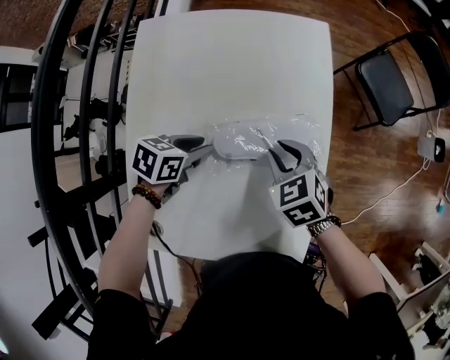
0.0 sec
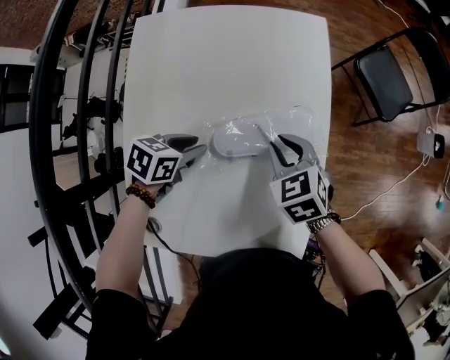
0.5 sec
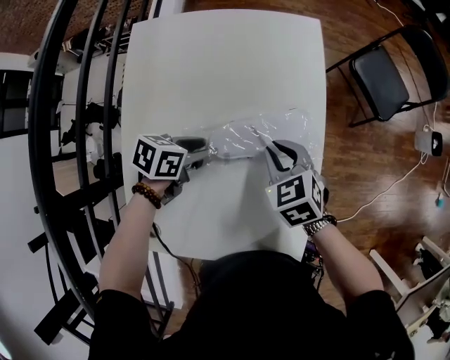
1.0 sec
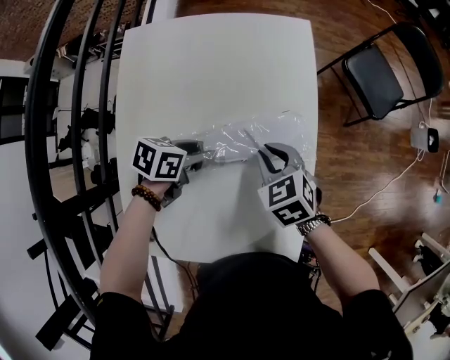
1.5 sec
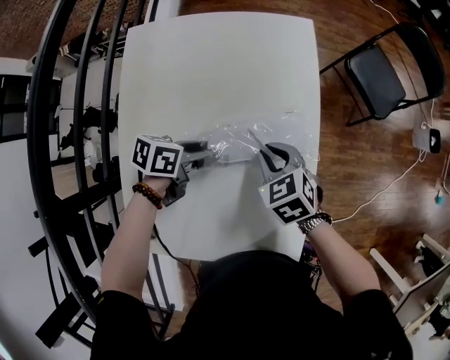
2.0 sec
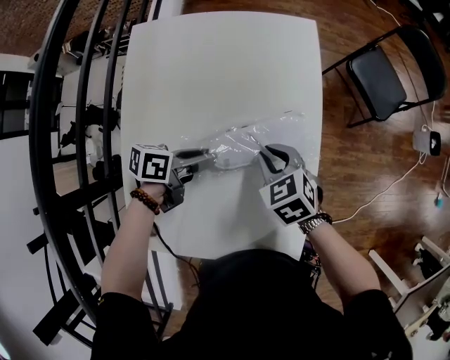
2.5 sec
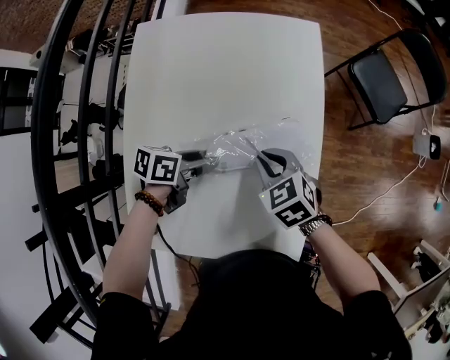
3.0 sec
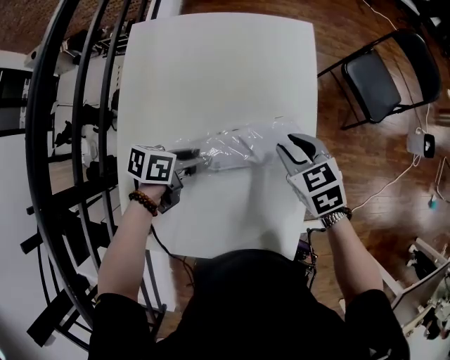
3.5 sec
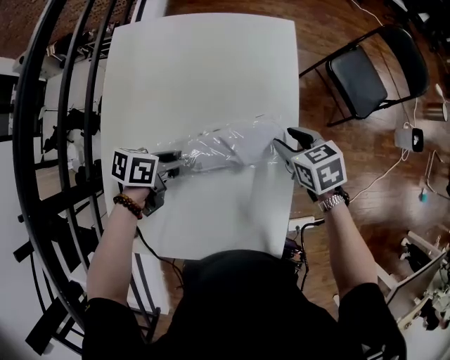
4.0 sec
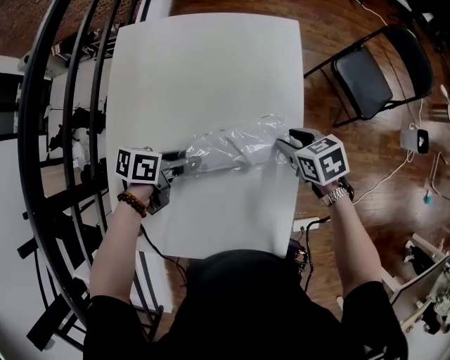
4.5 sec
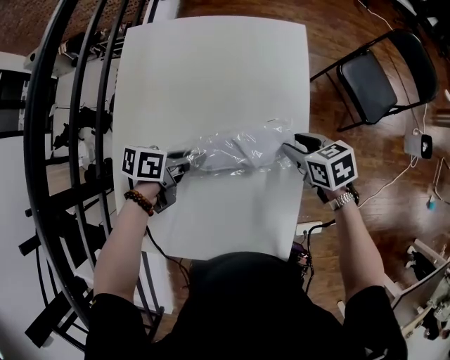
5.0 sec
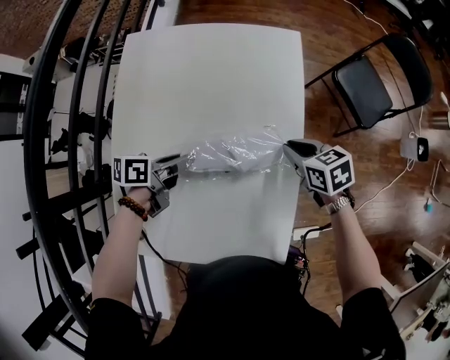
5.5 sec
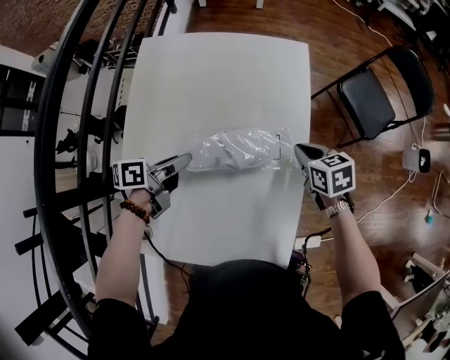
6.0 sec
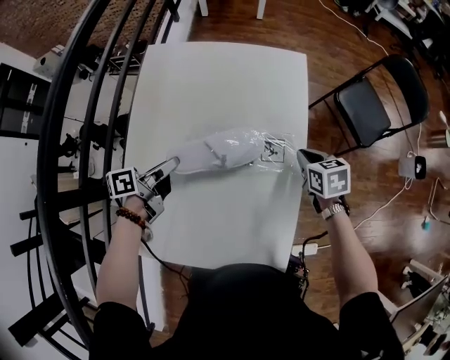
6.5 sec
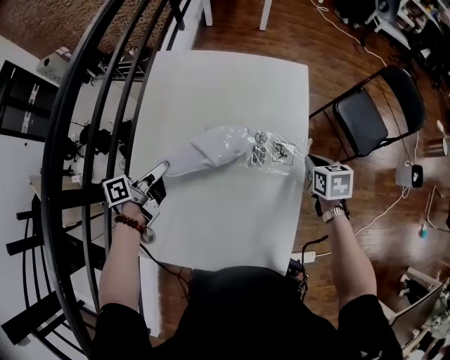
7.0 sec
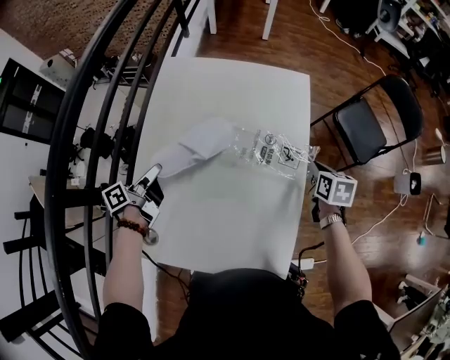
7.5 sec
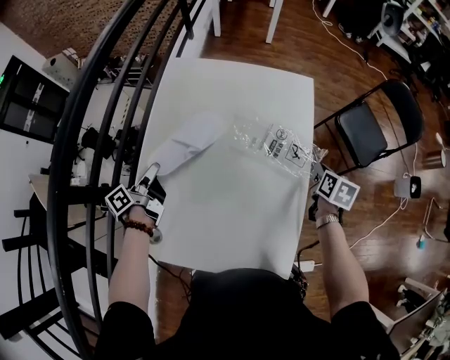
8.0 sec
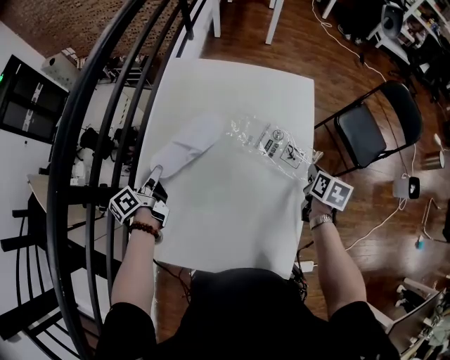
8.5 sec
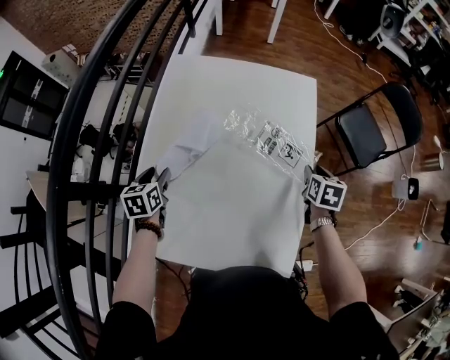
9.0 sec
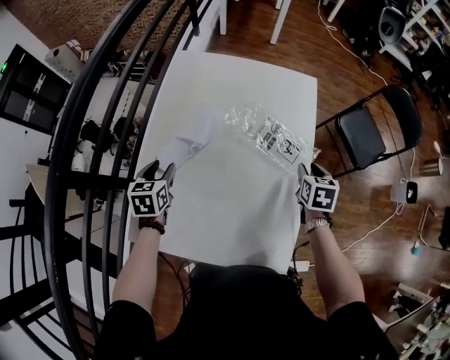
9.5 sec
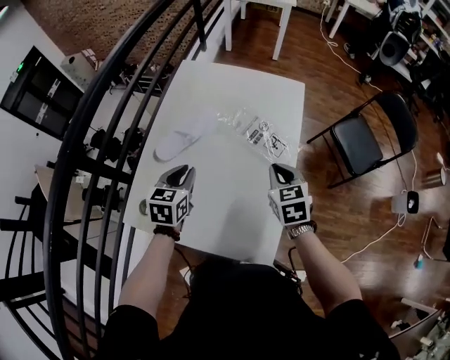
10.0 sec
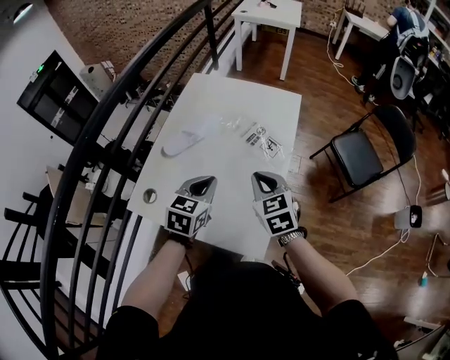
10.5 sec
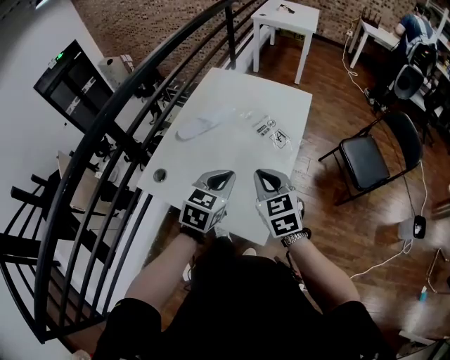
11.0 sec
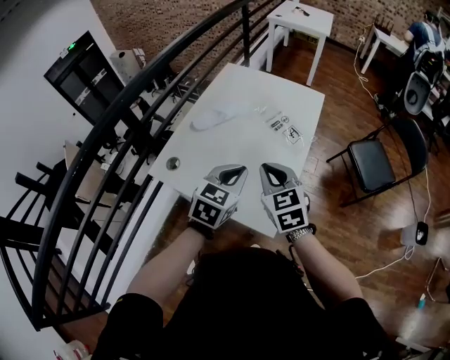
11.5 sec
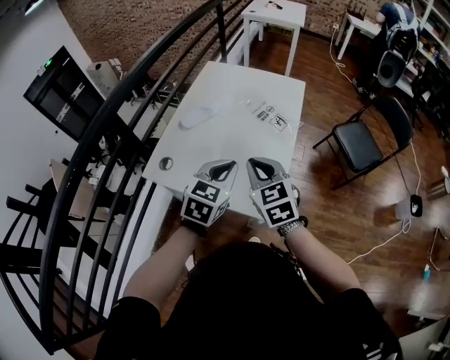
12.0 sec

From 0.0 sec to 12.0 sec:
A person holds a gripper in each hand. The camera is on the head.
From 0.0 sec to 2.0 sec: There are only small adjustments of the grippers.
From 2.0 sec to 4.0 sec: The right gripper moves to the right and forward, roughly 10 cm, and opens.
From 4.0 sec to 6.0 sec: The left gripper changes place by roughly 5 cm, rotates some 30 degrees, and closes up; the right gripper closes.
From 6.0 sec to 8.0 sec: The right gripper heads to the right, covering about 5 cm, and swivels roughly 40 degrees. The left gripper heads to the left, covering roughly 15 cm, and turns by some 40 degrees.
From 8.0 sec to 10.0 sec: The right gripper shifts about 15 cm to the left, backward and upward, rolls counterclockwise, seen from behind, by approximately 40 degrees, and opens, then closes again; the left gripper heads to the right, covering roughly 15 cm, rolls clockwise, seen from behind, by roughly 70 degrees, and opens and closes again.
From 10.0 sec to 12.0 sec: The right gripper is displaced backward, to the left and upward by about 20 cm, and rotates roughly 20 degrees, while the left gripper is displaced backward, to the right and upward by about 20 cm.

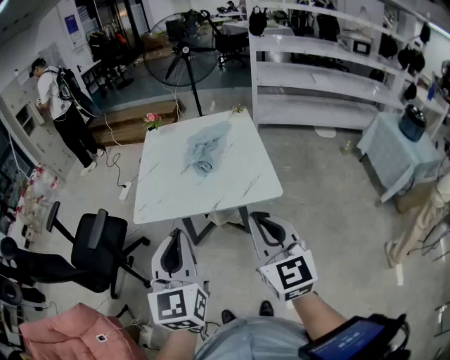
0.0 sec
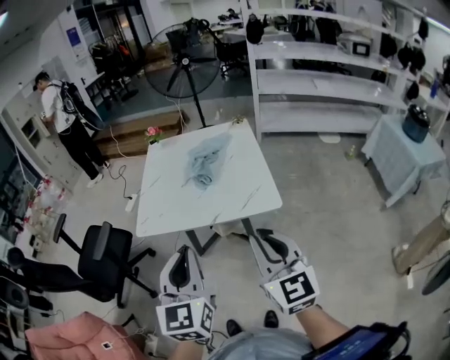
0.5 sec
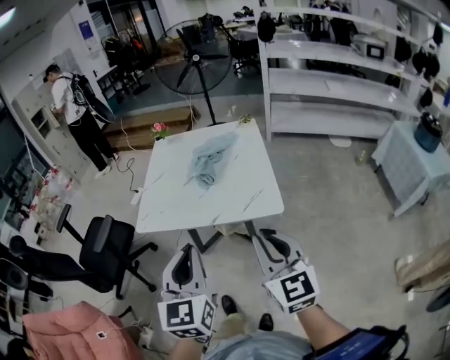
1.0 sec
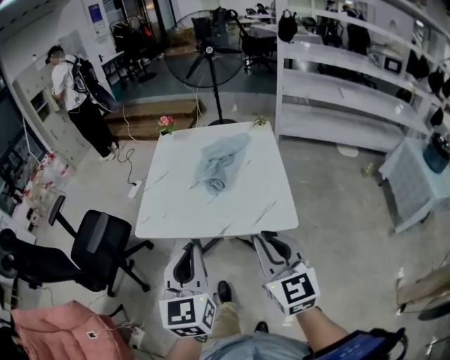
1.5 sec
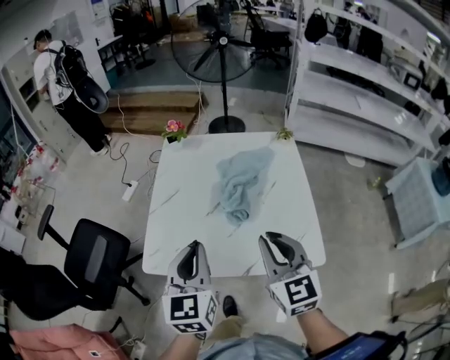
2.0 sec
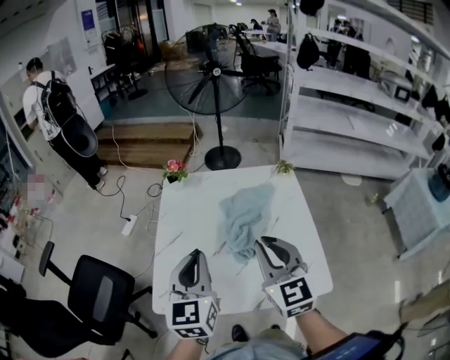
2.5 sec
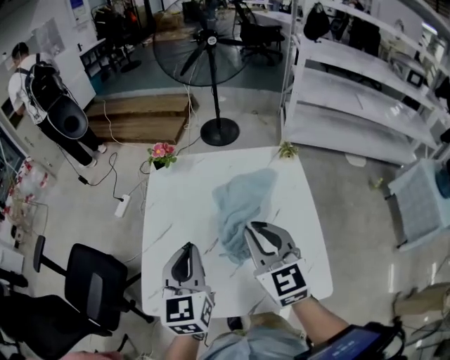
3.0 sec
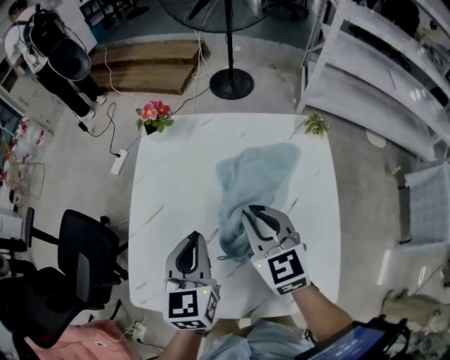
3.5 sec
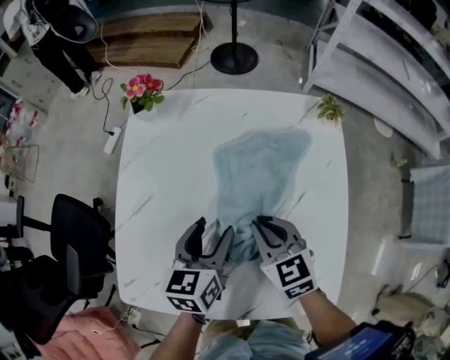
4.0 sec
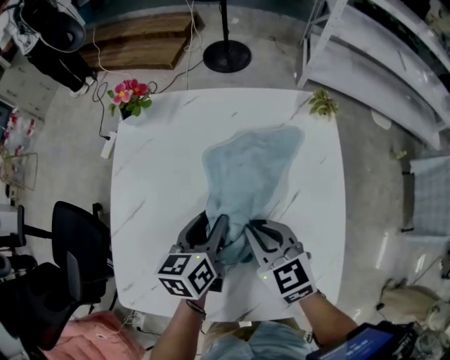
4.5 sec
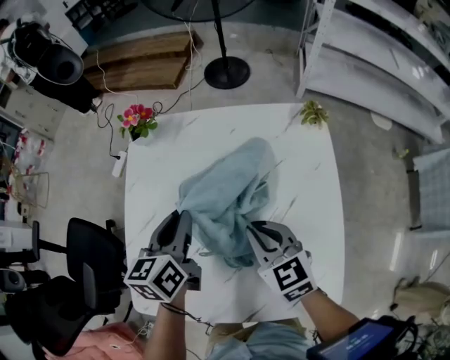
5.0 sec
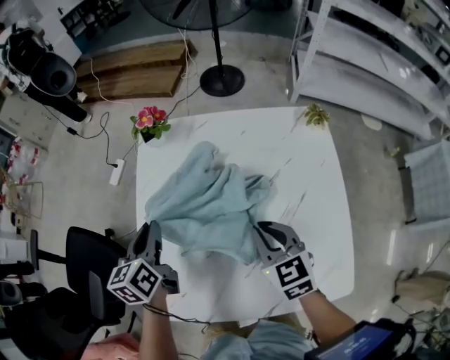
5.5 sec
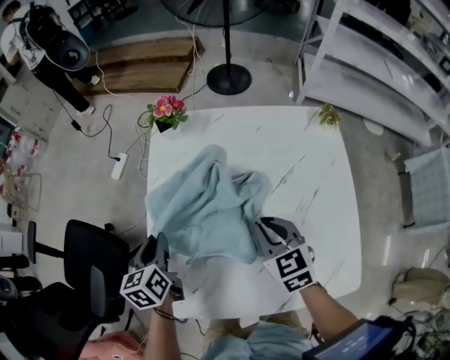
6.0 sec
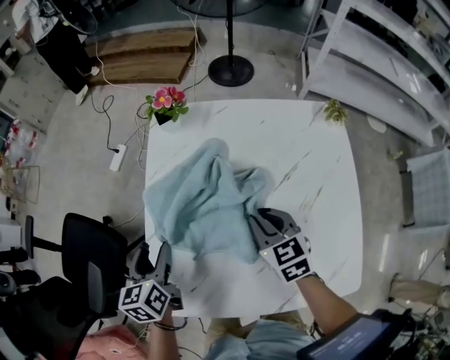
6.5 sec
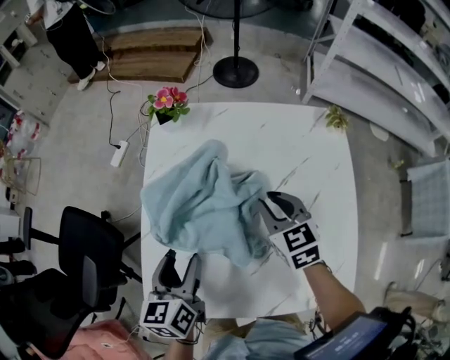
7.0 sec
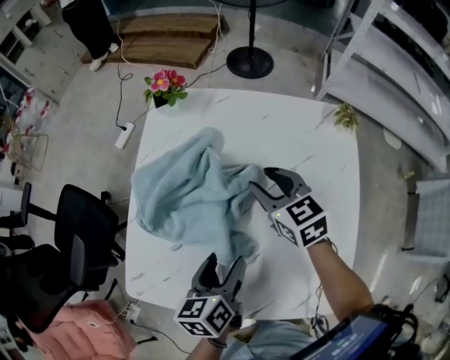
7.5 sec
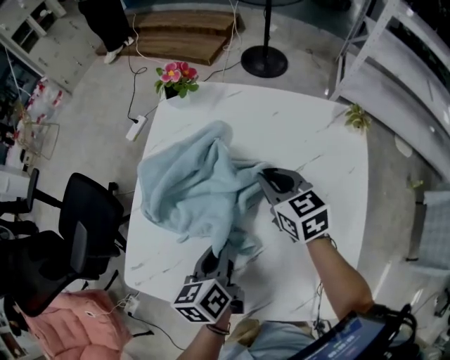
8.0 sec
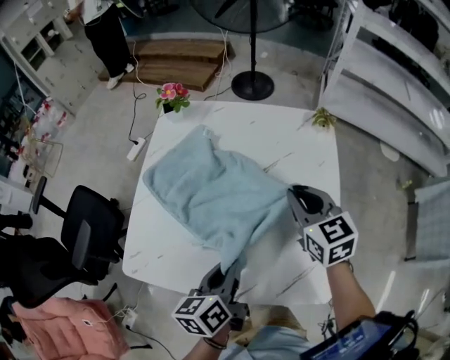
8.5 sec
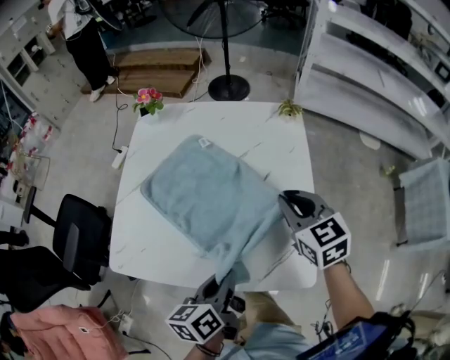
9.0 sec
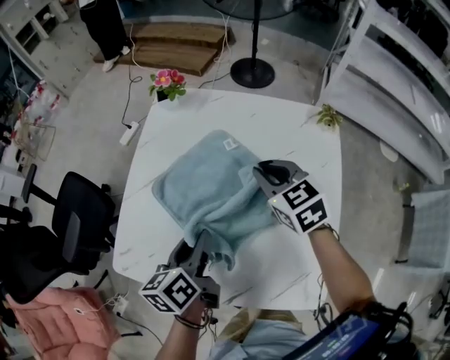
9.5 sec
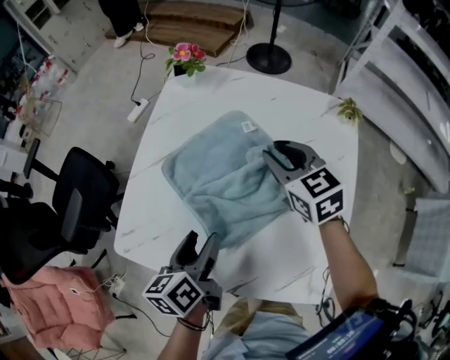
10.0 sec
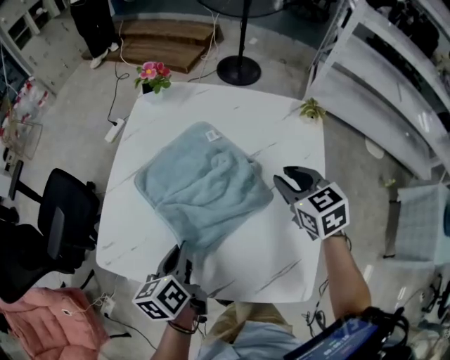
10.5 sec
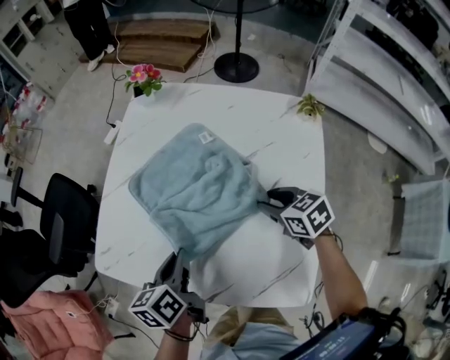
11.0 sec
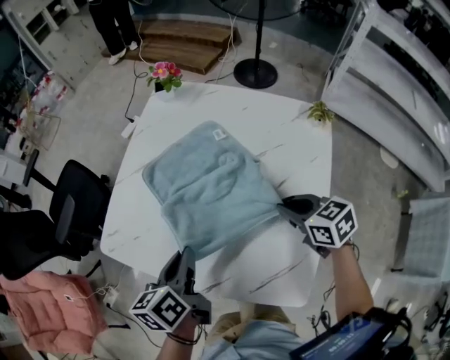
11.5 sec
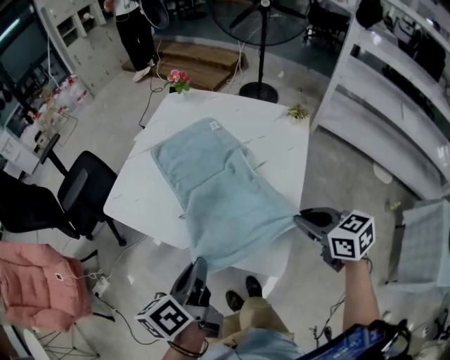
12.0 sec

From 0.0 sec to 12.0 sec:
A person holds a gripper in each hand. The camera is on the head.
From 0.0 sec to 2.0 sec: Both grippers travel together forward, some 30 cm.
From 2.0 sec to 4.0 sec: The two grippers go some 30 cm forward and downward. The left gripper turns by approximately 30 degrees, and opens its fingers. The right gripper rotates approximately 30 degrees.
From 4.0 sec to 6.0 sec: The left gripper goes approximately 25 cm to the left, and closes up. The right gripper travels to the left by approximately 5 cm.
From 6.0 sec to 8.0 sec: The left gripper is displaced to the right and backward by roughly 25 cm, and opens, then closes once more. The right gripper moves forward and to the right, about 10 cm, and opens, then closes again.
From 8.0 sec to 10.0 sec: The left gripper travels backward and back again, about 20 cm each way, and opens up; the right gripper is displaced upward by some 5 cm, and goes backward and returns, roughly 20 cm each way.
From 10.0 sec to 12.0 sec: The left gripper travels backward by some 25 cm, and closes its fingers. The right gripper moves backward and to the right, about 35 cm.

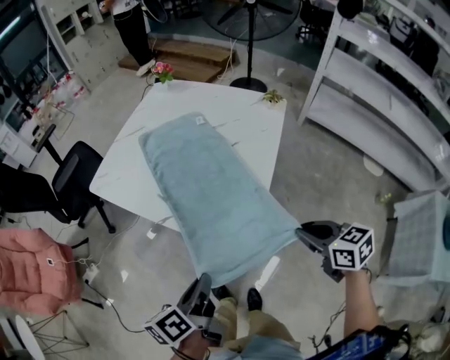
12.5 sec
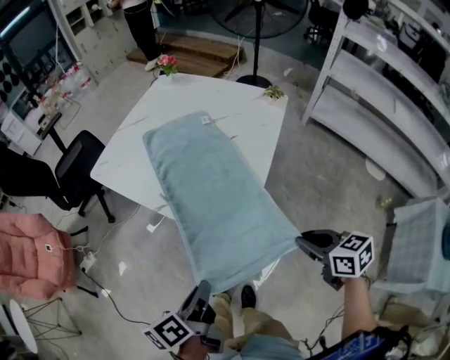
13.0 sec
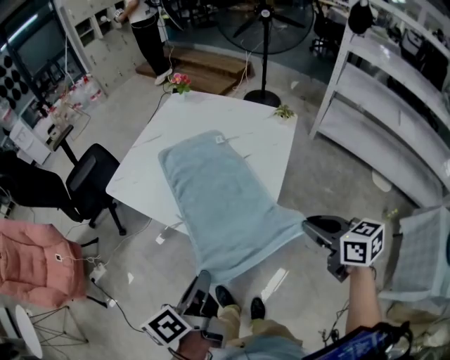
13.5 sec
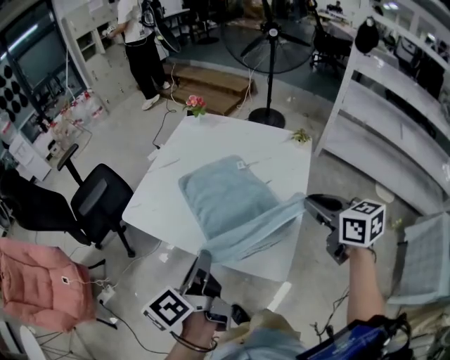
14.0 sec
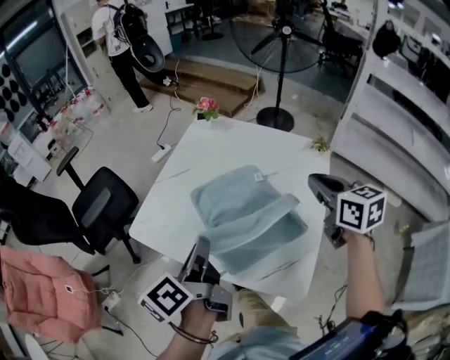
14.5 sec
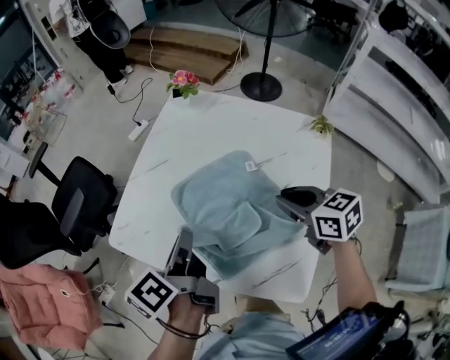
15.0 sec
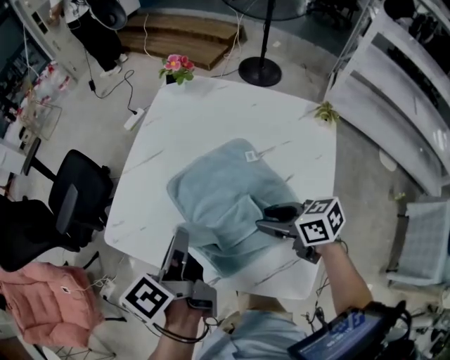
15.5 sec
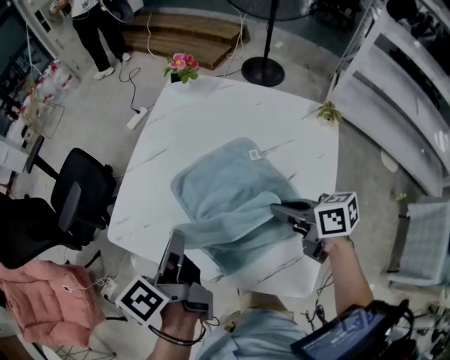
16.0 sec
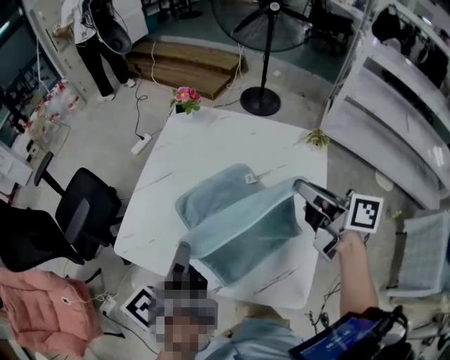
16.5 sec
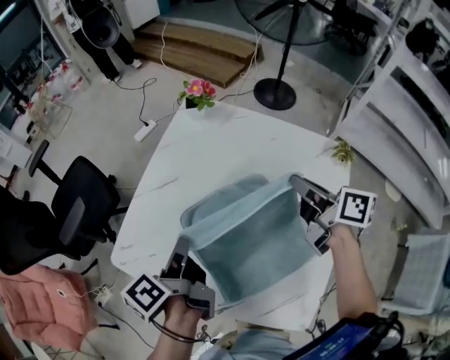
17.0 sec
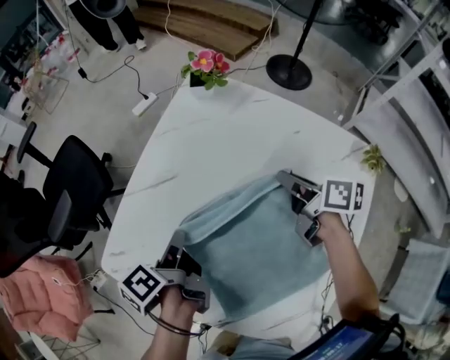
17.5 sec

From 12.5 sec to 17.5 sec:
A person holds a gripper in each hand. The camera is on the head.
From 12.5 sec to 15.0 sec: Both grippers travel together forward, approximately 35 cm.
From 15.0 sec to 17.5 sec: The left gripper goes about 20 cm downward and forward, and swivels about 20 degrees. The right gripper goes roughly 25 cm forward and downward, swivels approximately 40 degrees, and opens, then closes once more.
